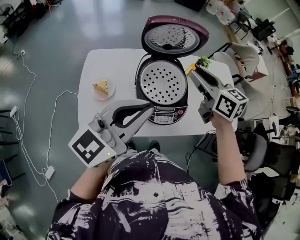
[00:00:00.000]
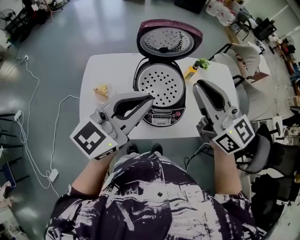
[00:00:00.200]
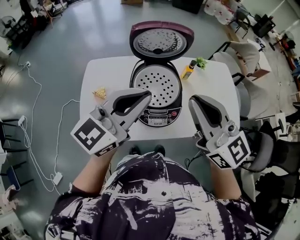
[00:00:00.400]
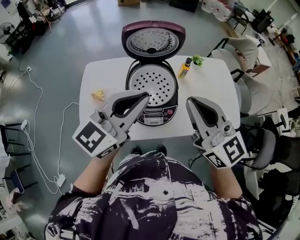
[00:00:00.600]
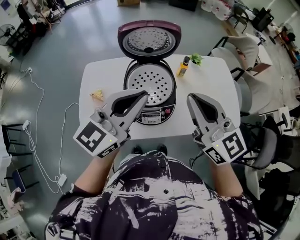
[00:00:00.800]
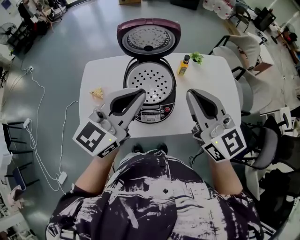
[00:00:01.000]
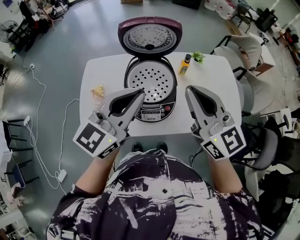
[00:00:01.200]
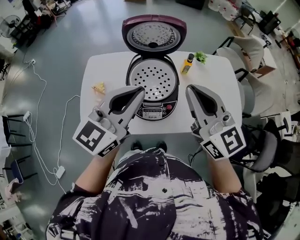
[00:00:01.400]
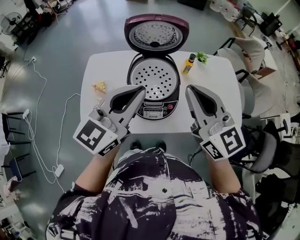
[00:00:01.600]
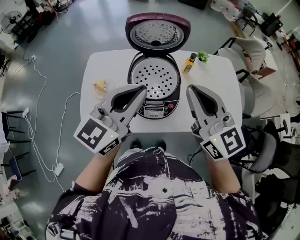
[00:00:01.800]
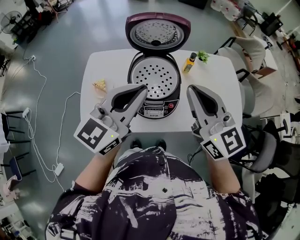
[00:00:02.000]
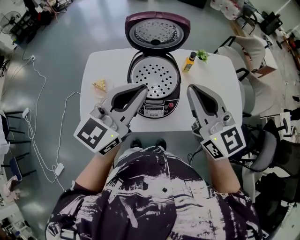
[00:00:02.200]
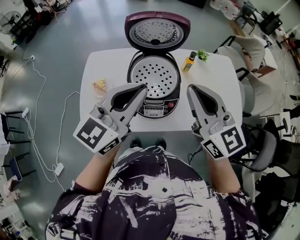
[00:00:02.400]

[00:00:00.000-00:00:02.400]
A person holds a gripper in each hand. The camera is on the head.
00:00:00.000 to 00:00:01.200: The right gripper heads backward, upward and to the right, covering some 15 cm, and swivels some 30 degrees. Meanwhile the left gripper heads to the right, covering about 10 cm.
00:00:01.200 to 00:00:02.400: The grippers stay close to where they were, moving slightly.

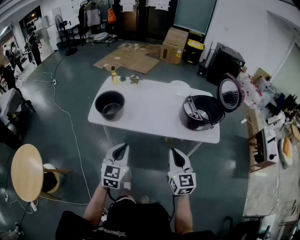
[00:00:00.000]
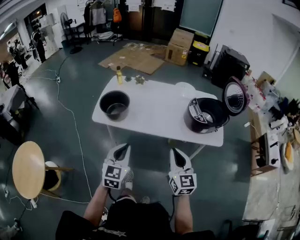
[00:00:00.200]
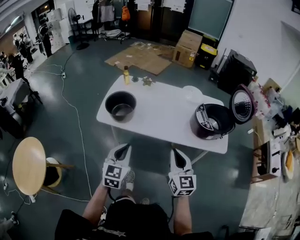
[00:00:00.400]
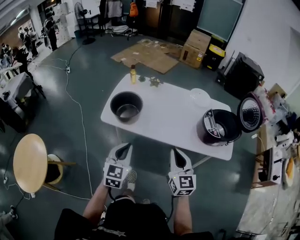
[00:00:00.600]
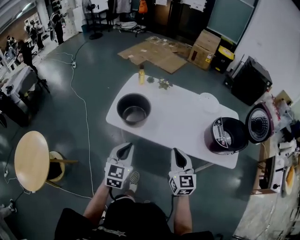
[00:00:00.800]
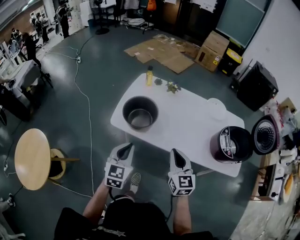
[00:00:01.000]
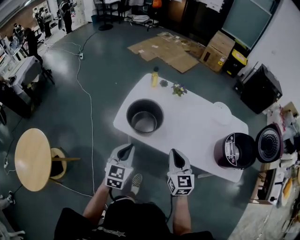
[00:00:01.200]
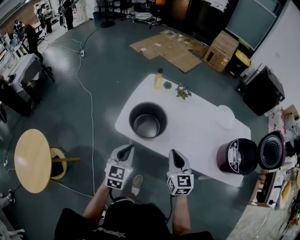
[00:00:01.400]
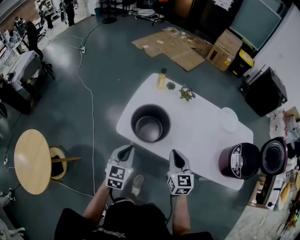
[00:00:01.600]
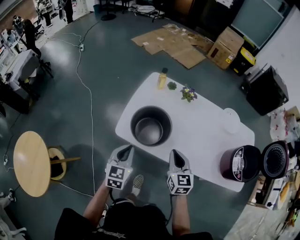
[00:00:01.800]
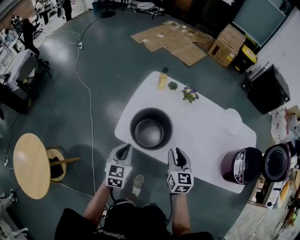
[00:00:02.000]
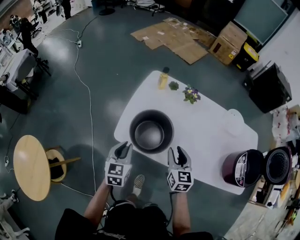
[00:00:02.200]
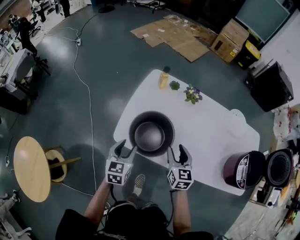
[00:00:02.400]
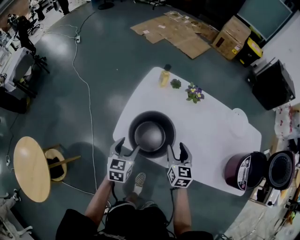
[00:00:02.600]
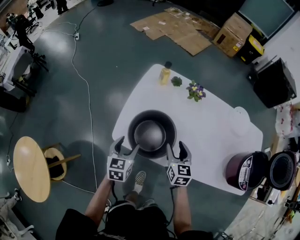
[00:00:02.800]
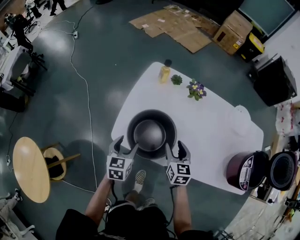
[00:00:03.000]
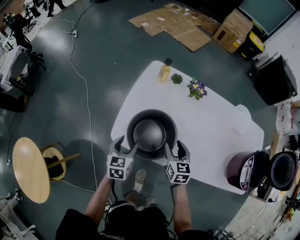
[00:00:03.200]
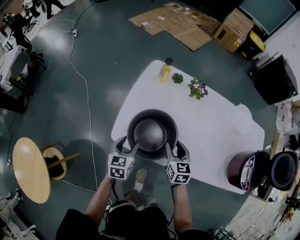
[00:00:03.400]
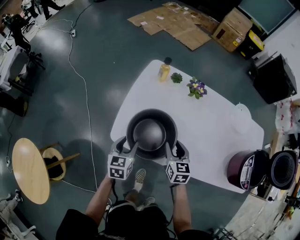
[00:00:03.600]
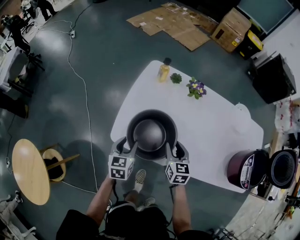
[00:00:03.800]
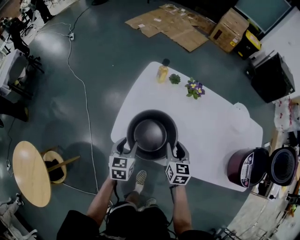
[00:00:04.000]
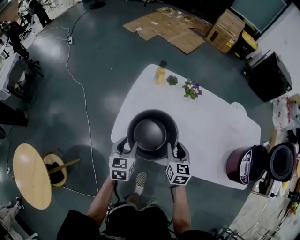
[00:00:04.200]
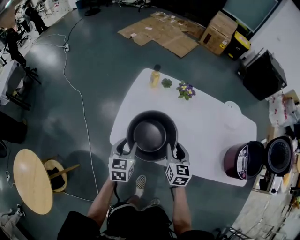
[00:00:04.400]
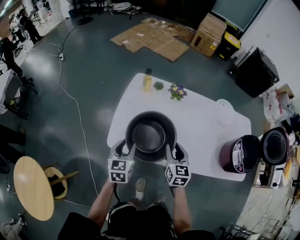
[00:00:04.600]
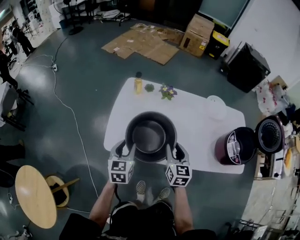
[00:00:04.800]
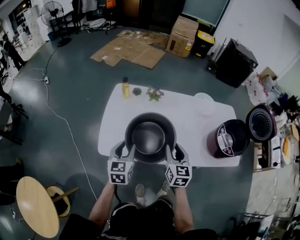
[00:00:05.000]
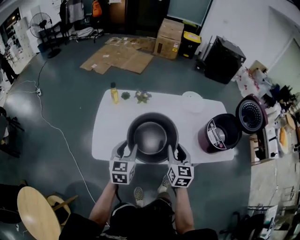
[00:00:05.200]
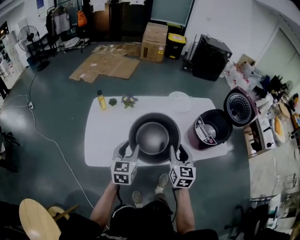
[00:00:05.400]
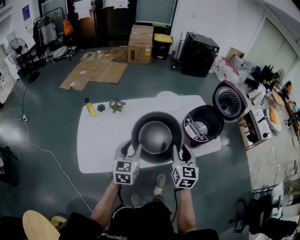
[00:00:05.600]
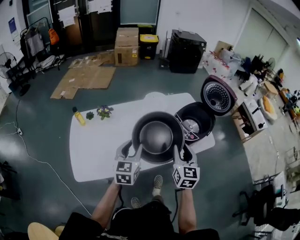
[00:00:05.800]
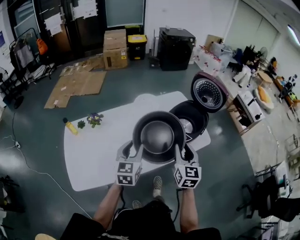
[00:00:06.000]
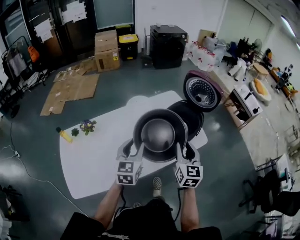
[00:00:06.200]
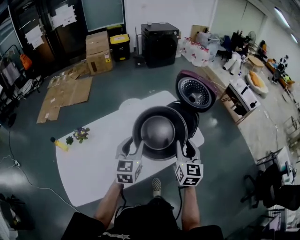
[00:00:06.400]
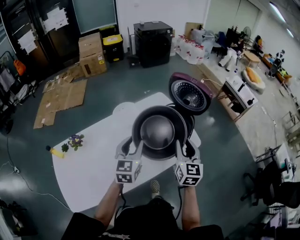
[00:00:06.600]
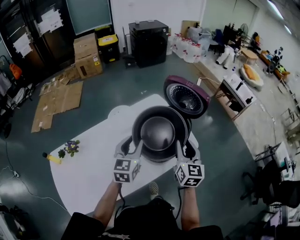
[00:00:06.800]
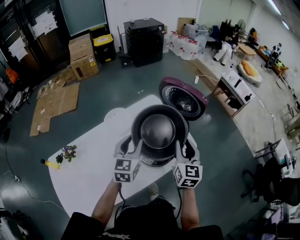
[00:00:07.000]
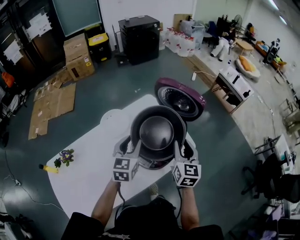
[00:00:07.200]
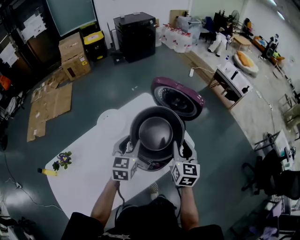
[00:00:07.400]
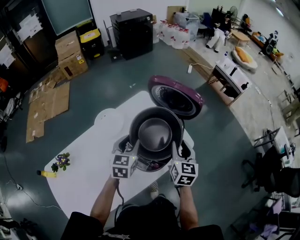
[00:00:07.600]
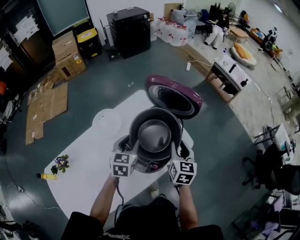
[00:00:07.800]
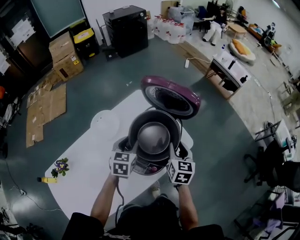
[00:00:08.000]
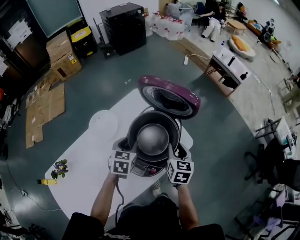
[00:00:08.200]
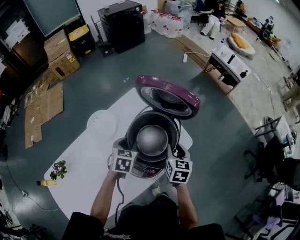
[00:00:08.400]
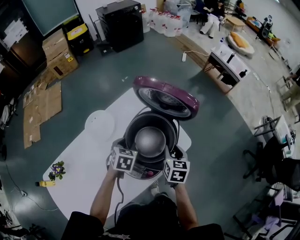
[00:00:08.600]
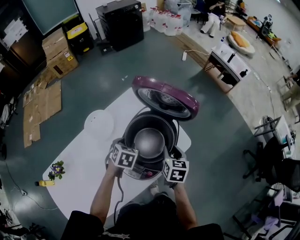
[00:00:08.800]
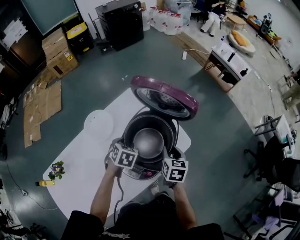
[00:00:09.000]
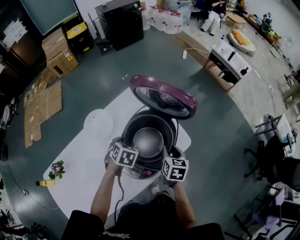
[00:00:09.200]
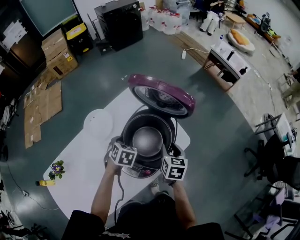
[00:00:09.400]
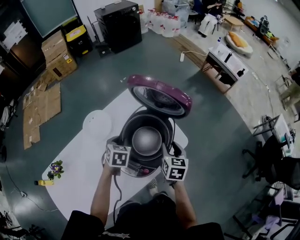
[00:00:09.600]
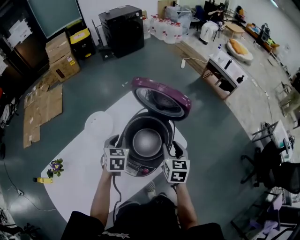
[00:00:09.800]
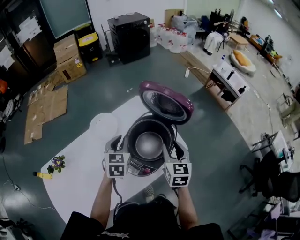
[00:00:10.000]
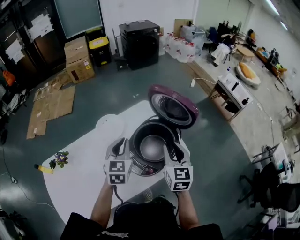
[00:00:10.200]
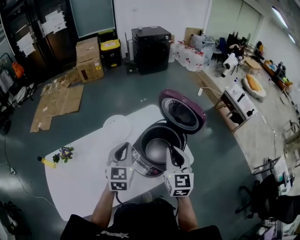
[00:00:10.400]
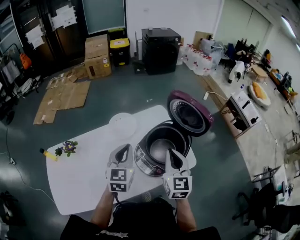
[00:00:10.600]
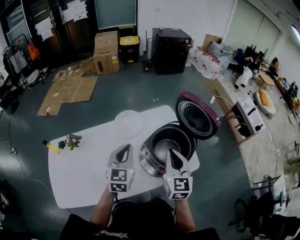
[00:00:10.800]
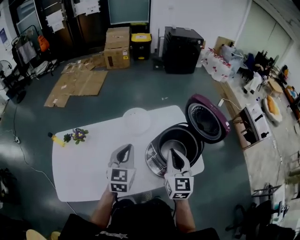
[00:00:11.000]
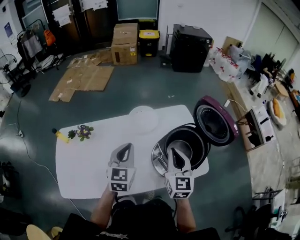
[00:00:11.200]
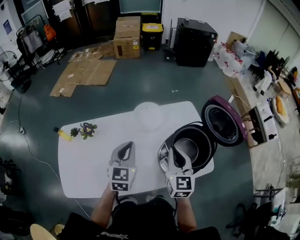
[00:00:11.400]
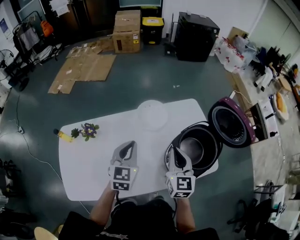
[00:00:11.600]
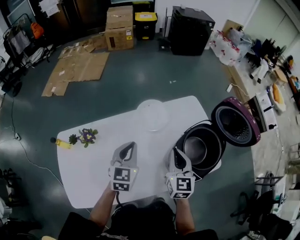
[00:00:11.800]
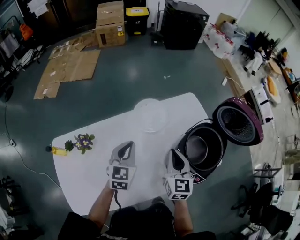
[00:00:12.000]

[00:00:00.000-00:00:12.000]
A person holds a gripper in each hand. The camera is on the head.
00:00:00.000 to 00:00:01.600: The two grippers go approximately 35 cm forward and to the left.
00:00:01.600 to 00:00:03.000: Both grippers move forward and downward, roughly 20 cm. The right gripper opens up, while the left gripper opens its fingers.
00:00:03.000 to 00:00:04.400: The right gripper closes; the left gripper closes.
00:00:04.400 to 00:00:06.000: Both grippers are carried some 40 cm. The right gripper swivels roughly 40 degrees. Meanwhile the left gripper turns by approximately 40 degrees.
00:00:06.000 to 00:00:07.600: The grippers both shift forward and to the right by about 30 cm. The right gripper changes its angle by some 20 degrees. Meanwhile the left gripper rotates approximately 20 degrees.
00:00:07.600 to 00:00:09.000: The grippers both shift downward by some 10 cm. The right gripper rotates roughly 20 degrees, while the left gripper angles its fingers downward, by some 30 degrees.
00:00:09.000 to 00:00:10.400: Both grippers move upward, roughly 20 cm. The right gripper points its fingers some 30 degrees further upward, and closes up; the left gripper angles its fingers upward, by some 50 degrees, and closes.
00:00:10.400 to 00:00:12.000: Both grippers move to the left and downward, roughly 25 cm.

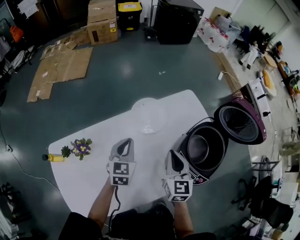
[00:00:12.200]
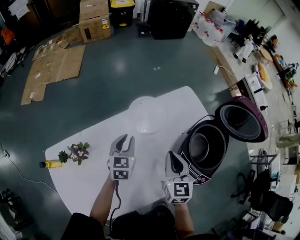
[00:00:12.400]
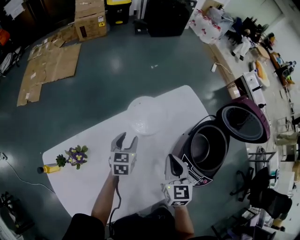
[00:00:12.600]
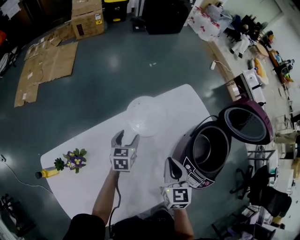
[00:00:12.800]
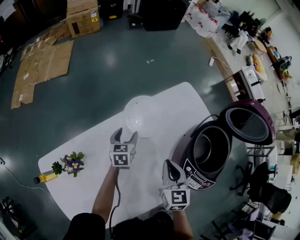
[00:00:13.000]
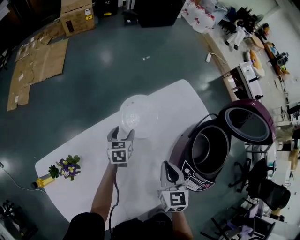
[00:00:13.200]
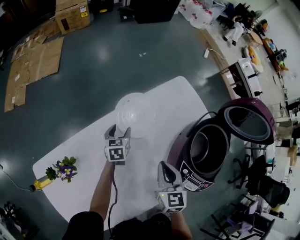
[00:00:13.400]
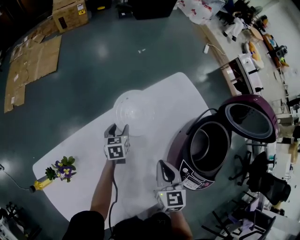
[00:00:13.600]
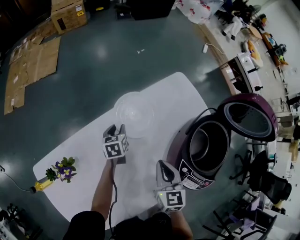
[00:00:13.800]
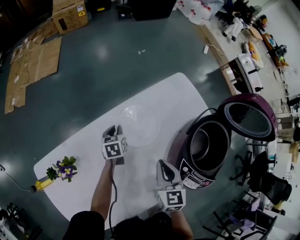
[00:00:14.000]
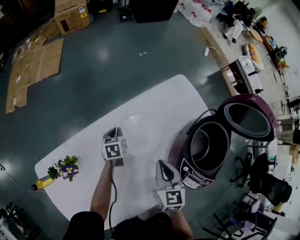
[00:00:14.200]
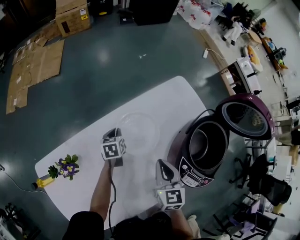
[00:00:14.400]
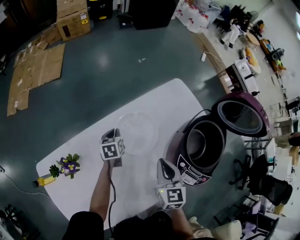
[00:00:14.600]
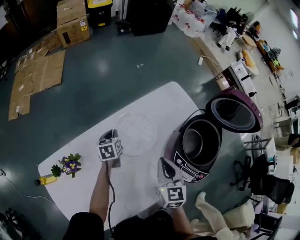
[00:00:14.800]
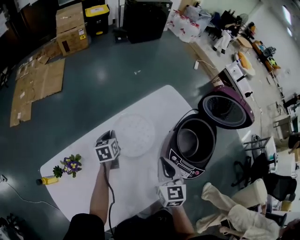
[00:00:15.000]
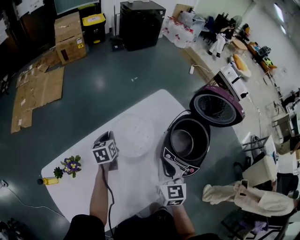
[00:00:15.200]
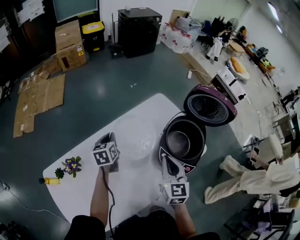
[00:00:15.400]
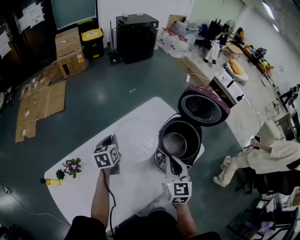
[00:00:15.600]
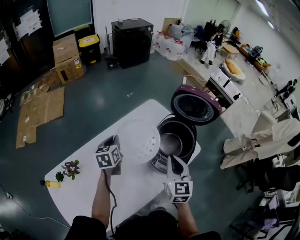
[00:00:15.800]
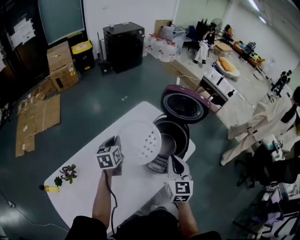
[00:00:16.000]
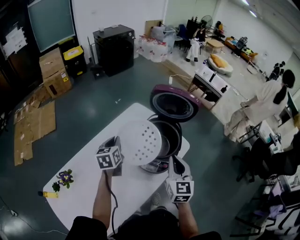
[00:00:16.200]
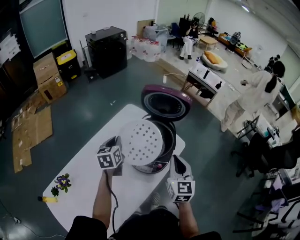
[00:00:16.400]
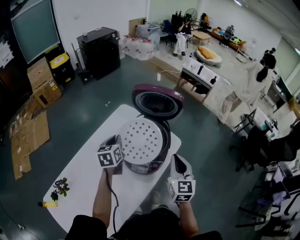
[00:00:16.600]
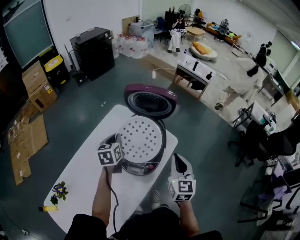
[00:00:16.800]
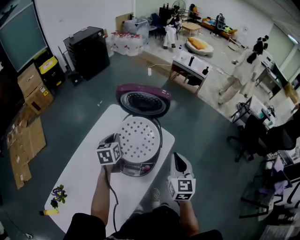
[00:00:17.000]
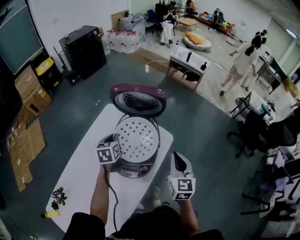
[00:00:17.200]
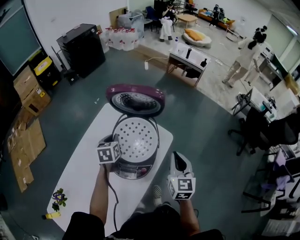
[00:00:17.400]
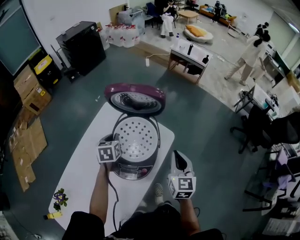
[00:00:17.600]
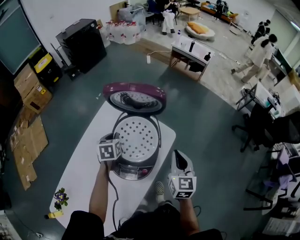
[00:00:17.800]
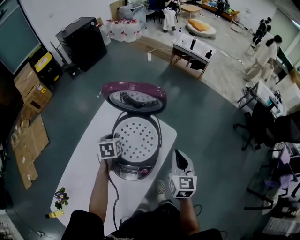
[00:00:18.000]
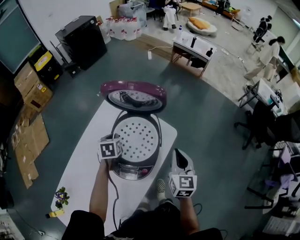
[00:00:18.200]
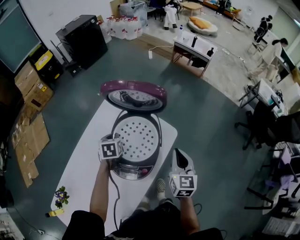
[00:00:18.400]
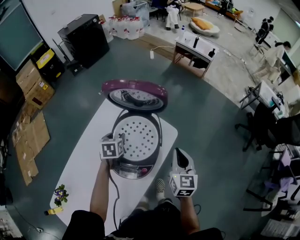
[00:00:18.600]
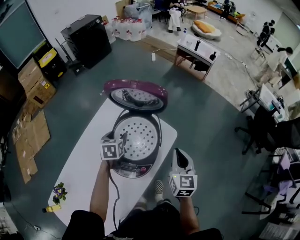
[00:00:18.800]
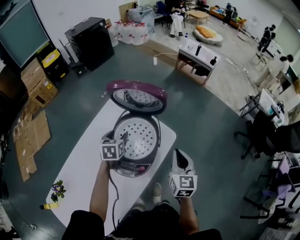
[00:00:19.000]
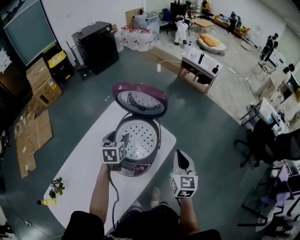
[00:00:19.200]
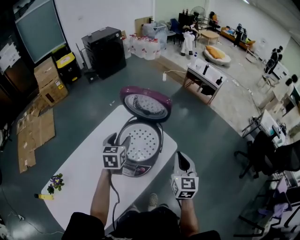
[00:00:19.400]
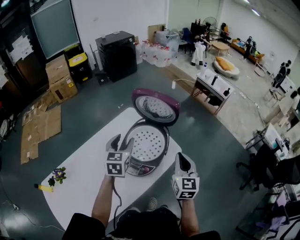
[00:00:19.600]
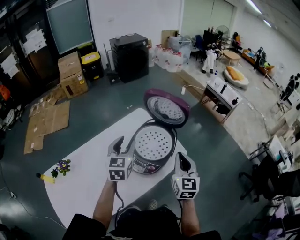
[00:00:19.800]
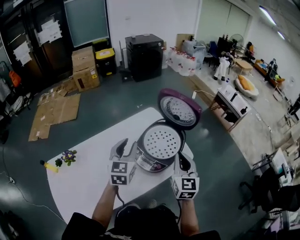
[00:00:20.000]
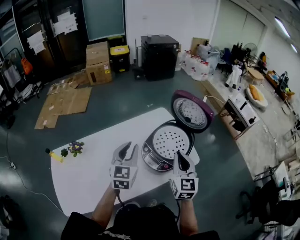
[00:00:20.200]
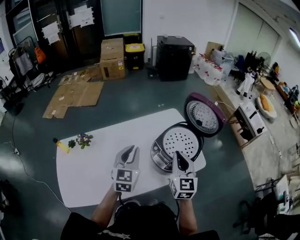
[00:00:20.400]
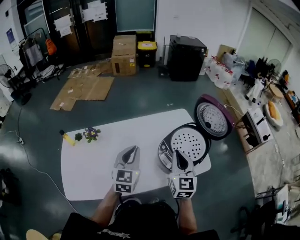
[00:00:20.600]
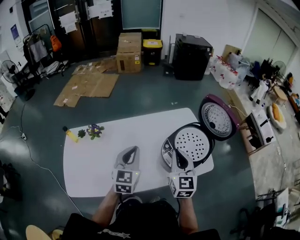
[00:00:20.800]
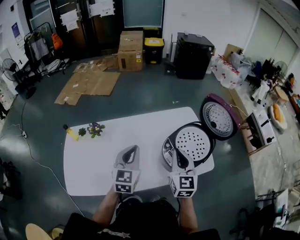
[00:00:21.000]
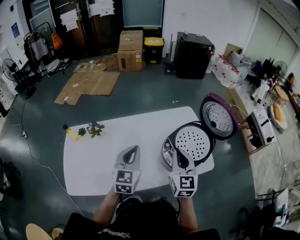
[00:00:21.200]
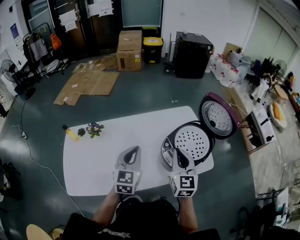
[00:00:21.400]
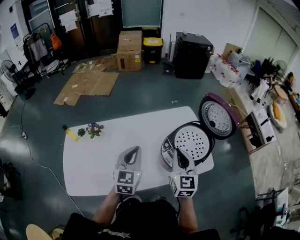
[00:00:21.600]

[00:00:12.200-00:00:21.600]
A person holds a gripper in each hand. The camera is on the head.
00:00:12.200 to 00:00:13.800: The right gripper heads downward, covering approximately 10 cm. The left gripper goes about 25 cm downward and forward, swivels approximately 30 degrees, and opens up.
00:00:13.800 to 00:00:15.400: The right gripper moves upward and to the right, approximately 15 cm, while the left gripper heads upward, covering about 20 cm, and closes up.
00:00:15.400 to 00:00:17.000: The grippers both shift to the right by roughly 30 cm. The left gripper turns by about 30 degrees. Meanwhile the right gripper swivels roughly 30 degrees.
00:00:17.000 to 00:00:18.400: The right gripper goes roughly 5 cm downward, while the left gripper shifts roughly 10 cm downward.
00:00:18.400 to 00:00:20.000: The right gripper travels upward and to the left by approximately 15 cm, and changes its angle by some 30 degrees, while the left gripper heads upward and backward, covering some 25 cm, tilts its fingers some 40 degrees upward, and opens its fingers.
00:00:20.000 to 00:00:21.600: The left gripper moves to the left and backward, approximately 15 cm, and closes, while the right gripper goes about 15 cm to the left, and changes its angle by roughly 20 degrees.
